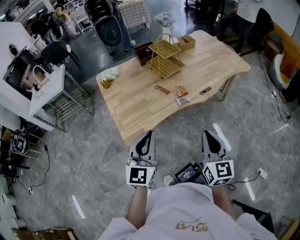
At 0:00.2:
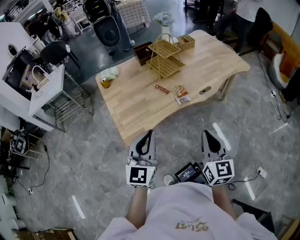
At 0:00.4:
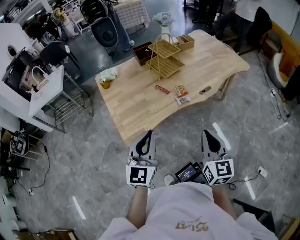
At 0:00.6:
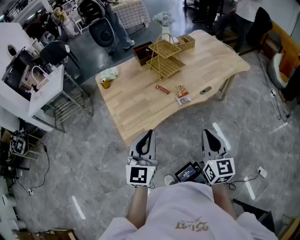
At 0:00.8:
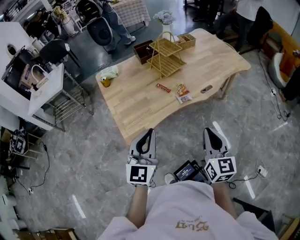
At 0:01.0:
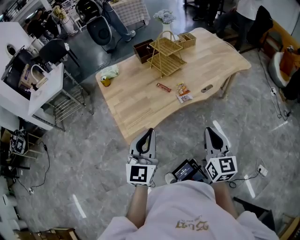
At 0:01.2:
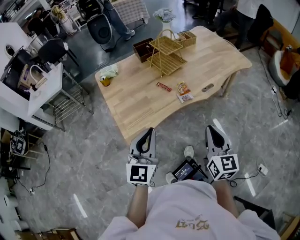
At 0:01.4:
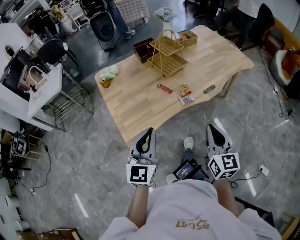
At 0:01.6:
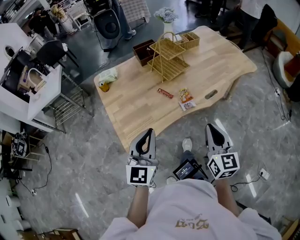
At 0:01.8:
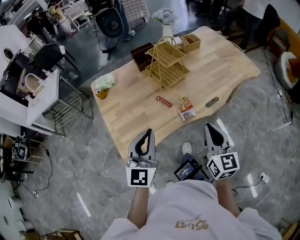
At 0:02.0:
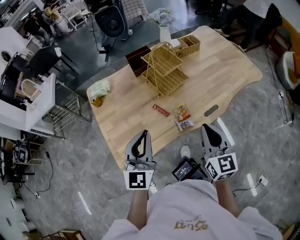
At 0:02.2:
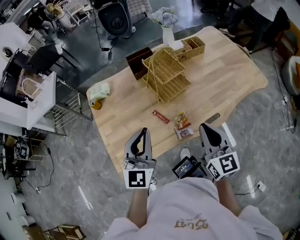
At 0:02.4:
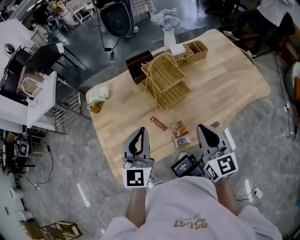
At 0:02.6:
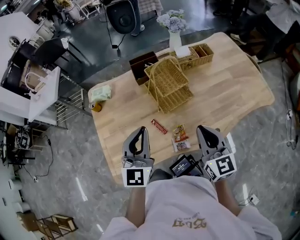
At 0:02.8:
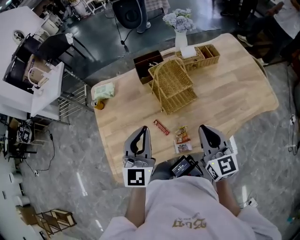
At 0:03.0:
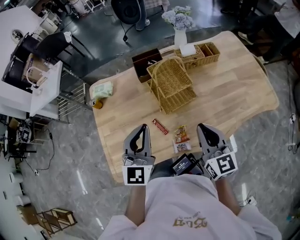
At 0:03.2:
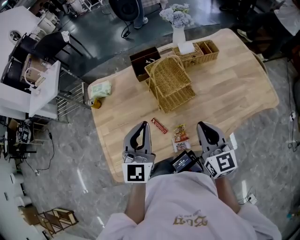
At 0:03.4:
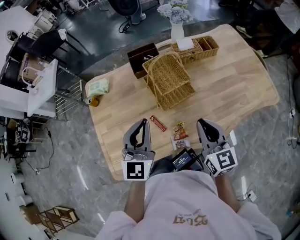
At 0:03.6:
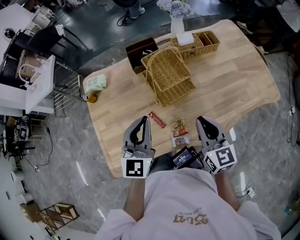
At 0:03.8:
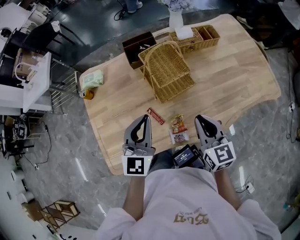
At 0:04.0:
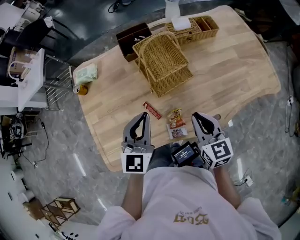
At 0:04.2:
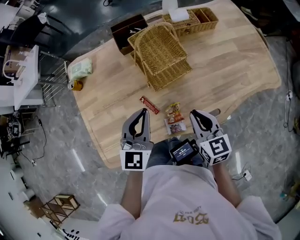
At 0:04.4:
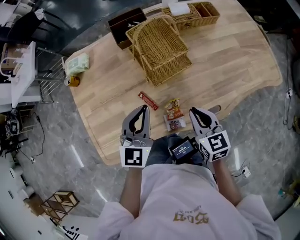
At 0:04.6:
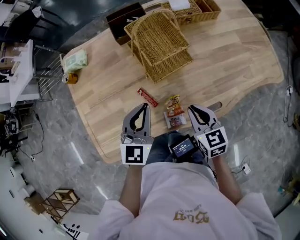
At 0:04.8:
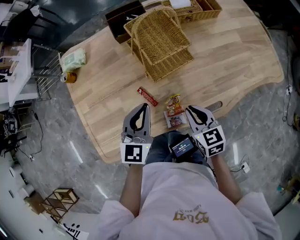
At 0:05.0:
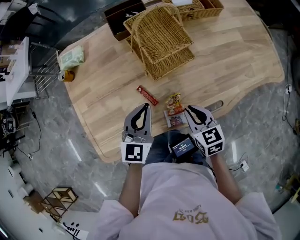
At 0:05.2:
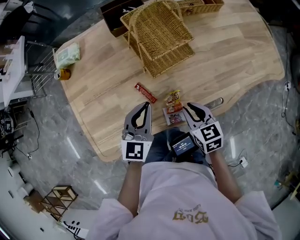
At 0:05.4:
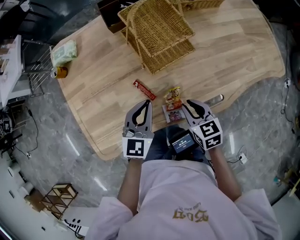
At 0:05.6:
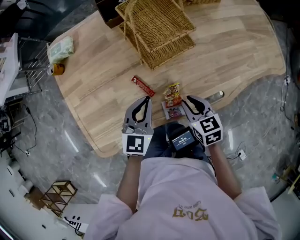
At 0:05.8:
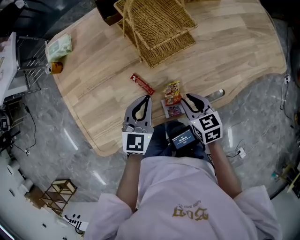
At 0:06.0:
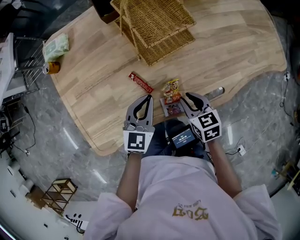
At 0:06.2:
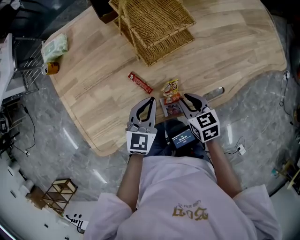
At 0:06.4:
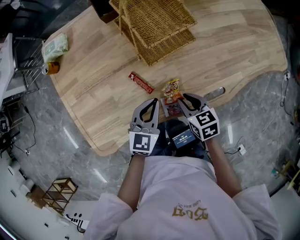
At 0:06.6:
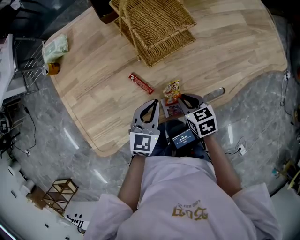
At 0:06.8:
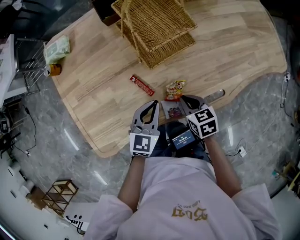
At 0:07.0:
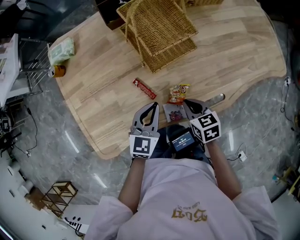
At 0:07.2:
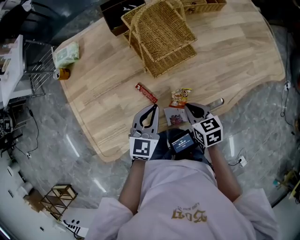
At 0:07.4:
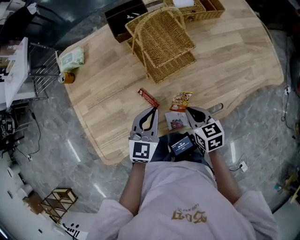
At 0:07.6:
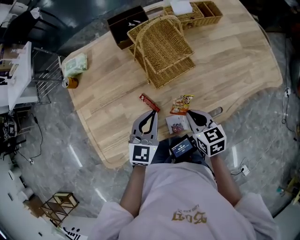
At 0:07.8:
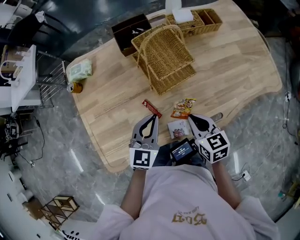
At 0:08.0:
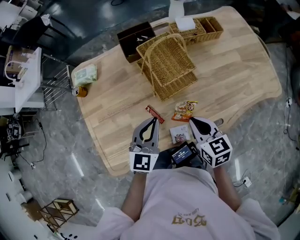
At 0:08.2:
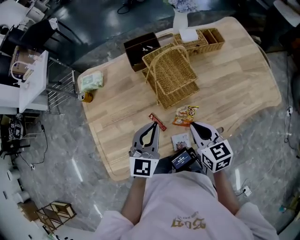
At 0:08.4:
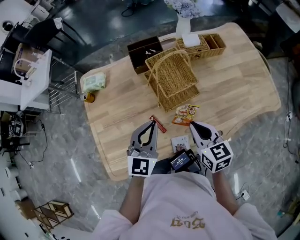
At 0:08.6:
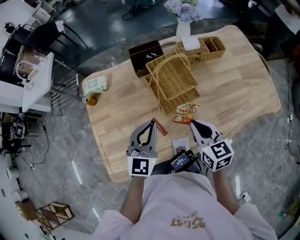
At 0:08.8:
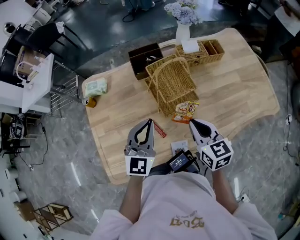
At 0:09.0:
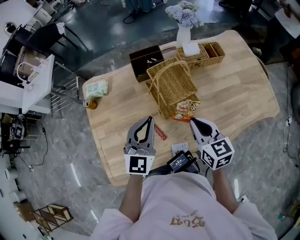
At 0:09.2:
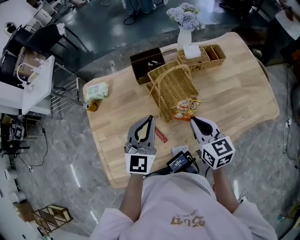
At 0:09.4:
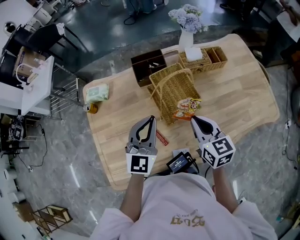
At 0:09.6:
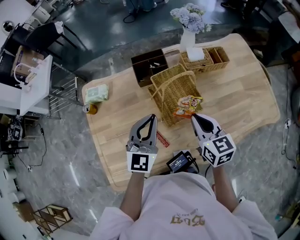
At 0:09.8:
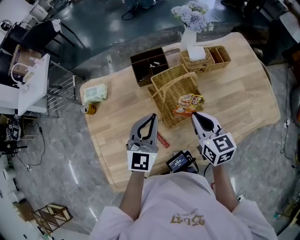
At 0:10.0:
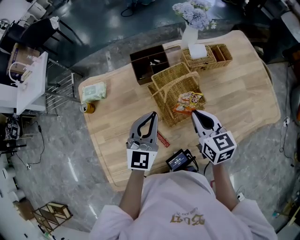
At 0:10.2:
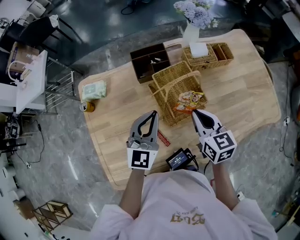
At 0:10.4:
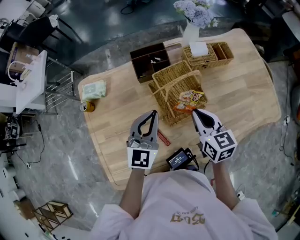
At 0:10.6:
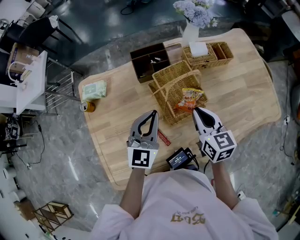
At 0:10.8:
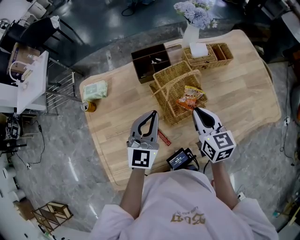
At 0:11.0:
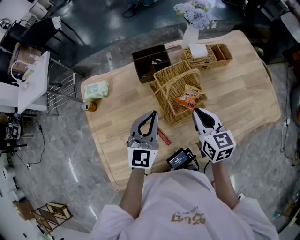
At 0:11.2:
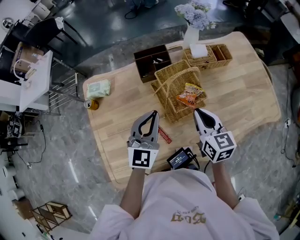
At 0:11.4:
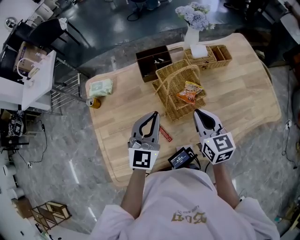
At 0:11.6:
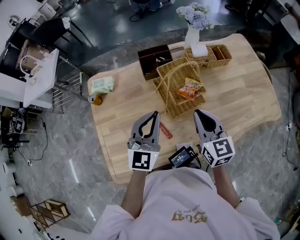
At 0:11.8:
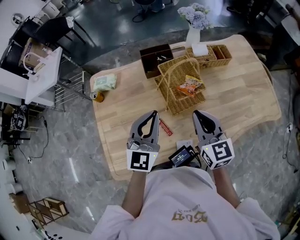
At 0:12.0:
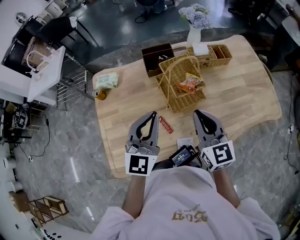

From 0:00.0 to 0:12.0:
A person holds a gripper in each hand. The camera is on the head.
From 0:00.0 to 0:01.6: The grippers both shift forward by roughly 10 cm.
From 0:01.6 to 0:03.0: The two grippers go roughly 30 cm forward. The right gripper rotates about 20 degrees.
From 0:03.0 to 0:04.4: The two grippers go roughly 15 cm downward. The right gripper changes its angle by roughly 20 degrees.
From 0:04.4 to 0:06.0: The grippers both shift downward by about 15 cm.
From 0:06.0 to 0:07.6: The grippers both shift upward by about 5 cm.
From 0:07.6 to 0:09.0: The grippers both shift upward and forward by roughly 15 cm.
From 0:09.0 to 0:10.4: The grippers both shift forward by approximately 10 cm.
From 0:10.4 to 0:12.0: The two grippers go approximately 15 cm backward and upward. The right gripper swivels some 20 degrees.

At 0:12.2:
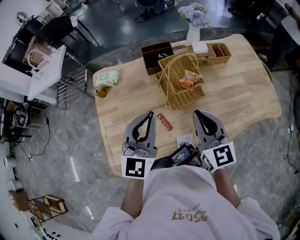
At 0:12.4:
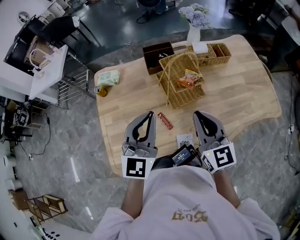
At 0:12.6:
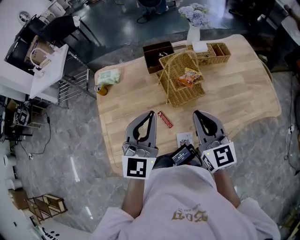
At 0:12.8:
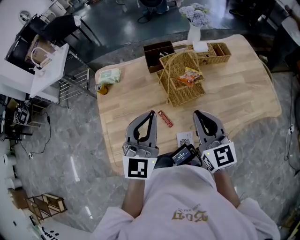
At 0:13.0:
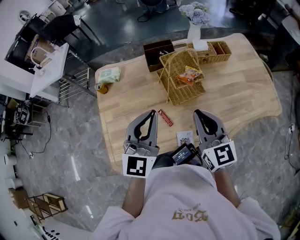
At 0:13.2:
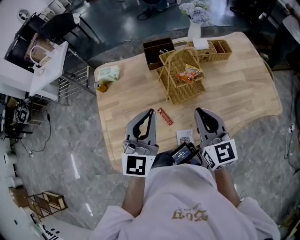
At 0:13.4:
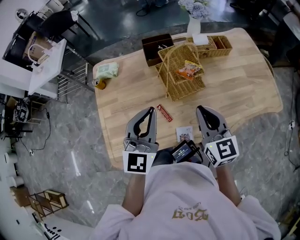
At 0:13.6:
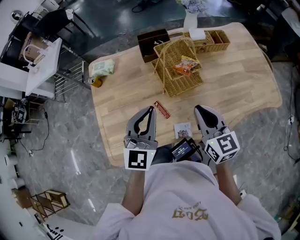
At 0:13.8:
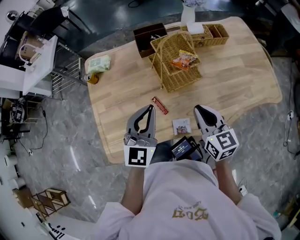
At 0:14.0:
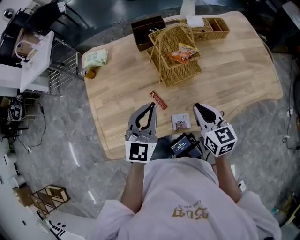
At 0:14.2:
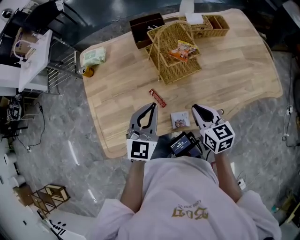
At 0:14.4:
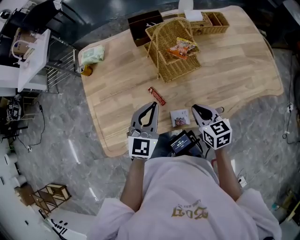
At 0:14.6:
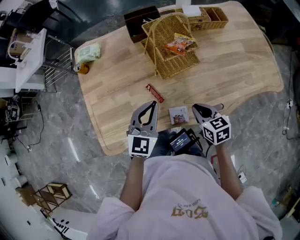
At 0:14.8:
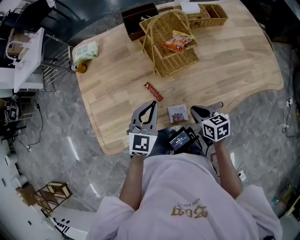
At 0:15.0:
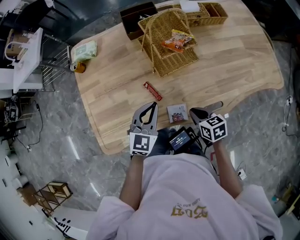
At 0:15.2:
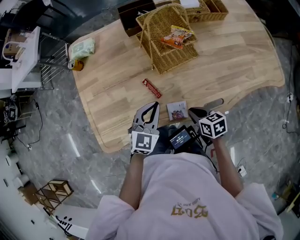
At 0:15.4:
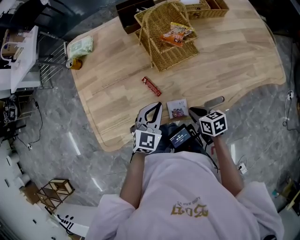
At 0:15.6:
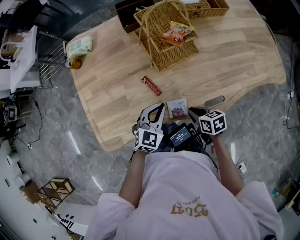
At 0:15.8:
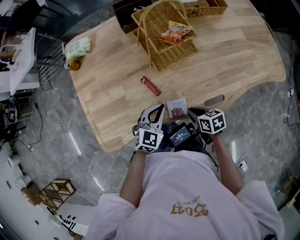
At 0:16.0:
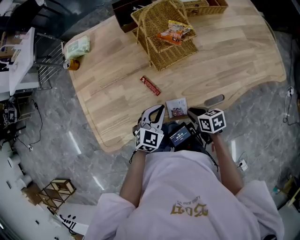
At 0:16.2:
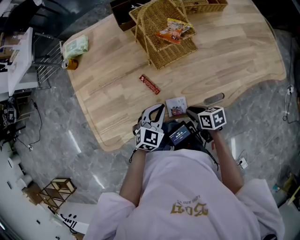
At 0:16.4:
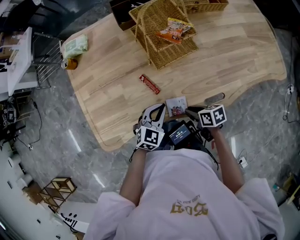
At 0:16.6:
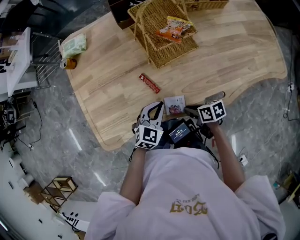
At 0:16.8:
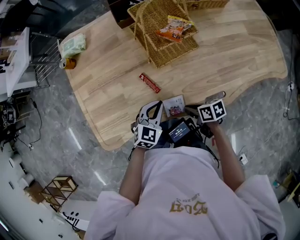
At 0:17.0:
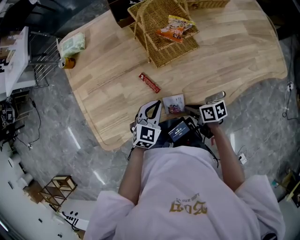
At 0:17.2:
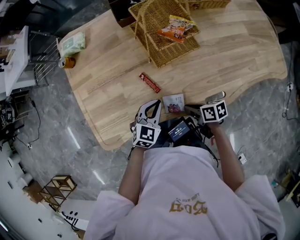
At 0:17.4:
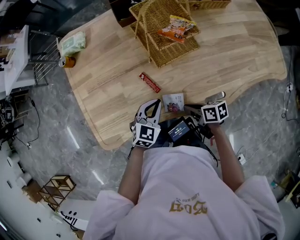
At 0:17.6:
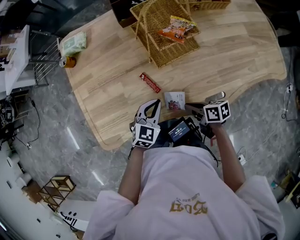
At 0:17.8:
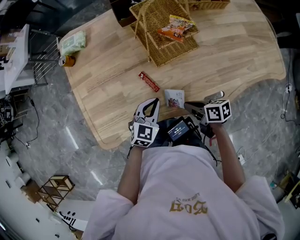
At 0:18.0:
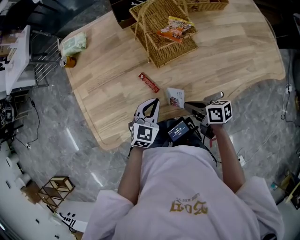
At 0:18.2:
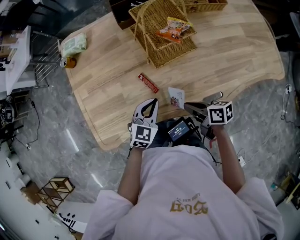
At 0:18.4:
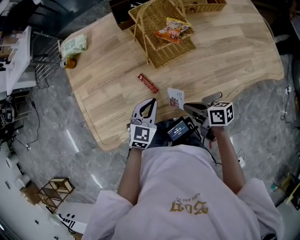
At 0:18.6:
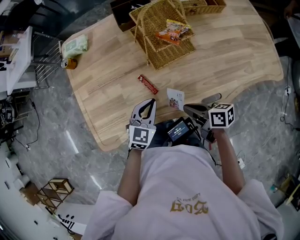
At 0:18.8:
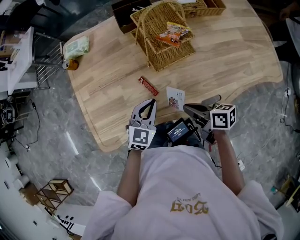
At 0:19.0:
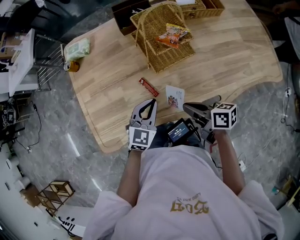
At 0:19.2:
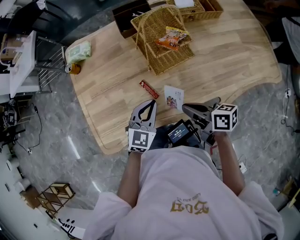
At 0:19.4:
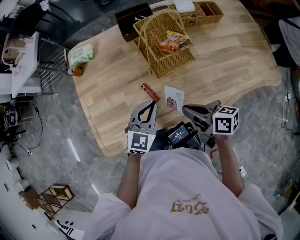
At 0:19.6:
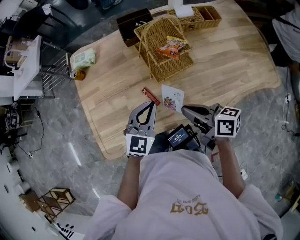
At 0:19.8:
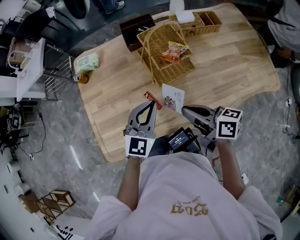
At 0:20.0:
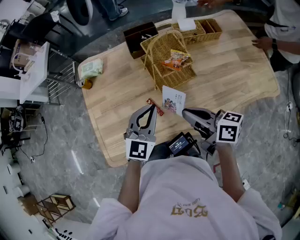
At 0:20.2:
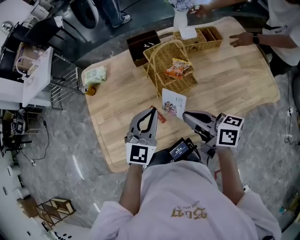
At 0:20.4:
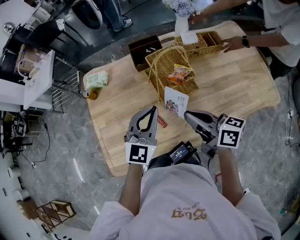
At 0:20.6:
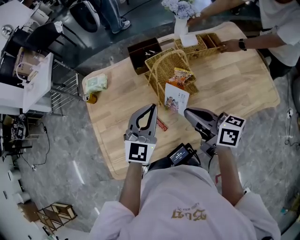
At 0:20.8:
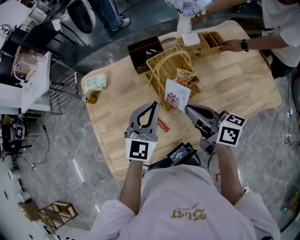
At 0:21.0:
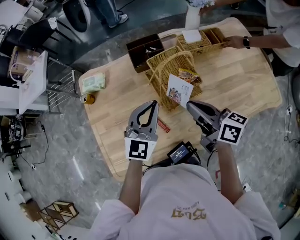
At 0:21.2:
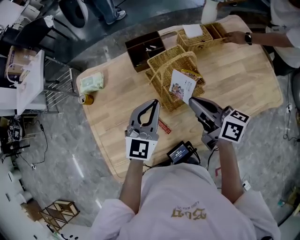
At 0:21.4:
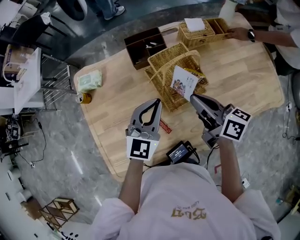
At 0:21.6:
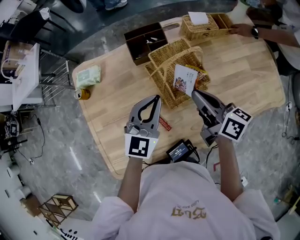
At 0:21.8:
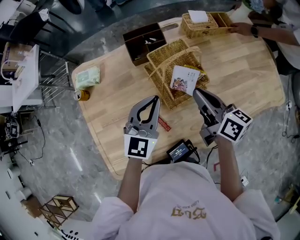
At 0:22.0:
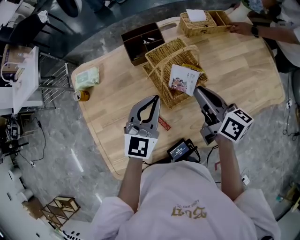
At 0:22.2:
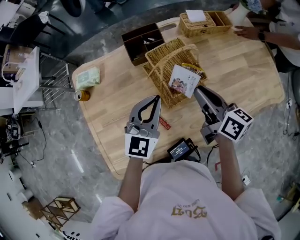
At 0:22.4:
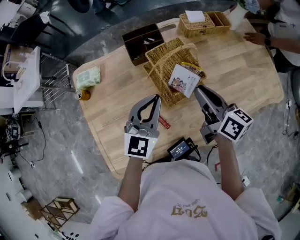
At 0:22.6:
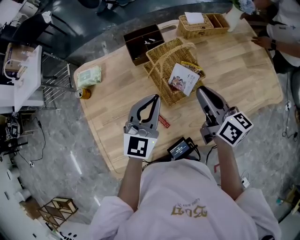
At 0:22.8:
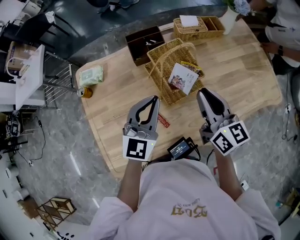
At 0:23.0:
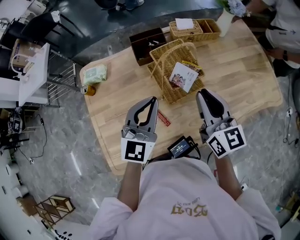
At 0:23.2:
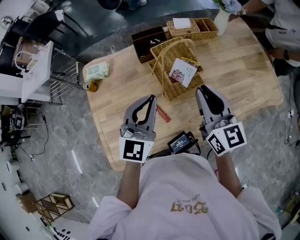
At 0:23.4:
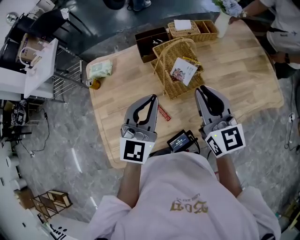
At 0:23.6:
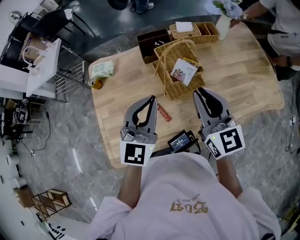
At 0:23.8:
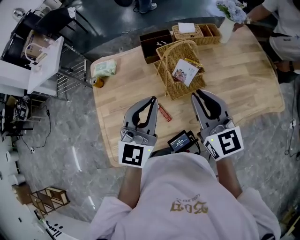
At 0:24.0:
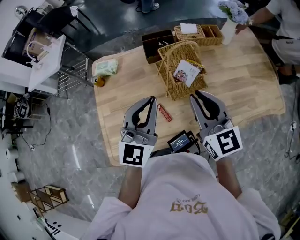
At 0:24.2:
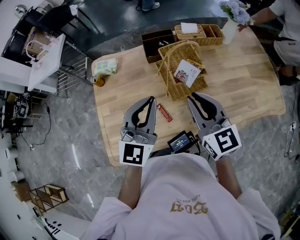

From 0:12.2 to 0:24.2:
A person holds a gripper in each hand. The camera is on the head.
From 0:12.2 to 0:13.8: The two grippers go some 10 cm downward.
From 0:13.8 to 0:15.2: Both grippers move downward, roughly 20 cm. The right gripper turns by roughly 40 degrees.
From 0:15.2 to 0:16.6: The left gripper travels downward by roughly 10 cm; the right gripper moves downward, about 5 cm, and rotates roughly 20 degrees.
From 0:16.6 to 0:18.2: The right gripper travels upward by about 10 cm.
From 0:18.2 to 0:19.8: Both grippers move upward, roughly 15 cm. The right gripper swivels about 20 degrees.
From 0:19.8 to 0:21.2: The grippers both shift forward by about 15 cm.
From 0:21.2 to 0:22.6: There are only small adjustments of the grippers.
From 0:22.6 to 0:24.2: The right gripper moves backward, upward and to the left, roughly 10 cm, and swivels some 40 degrees, while the left gripper shifts approximately 10 cm upward and backward.
